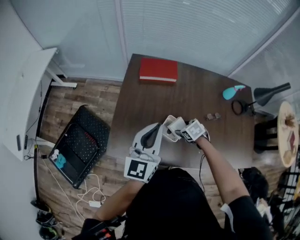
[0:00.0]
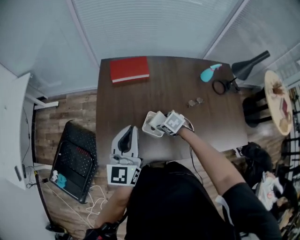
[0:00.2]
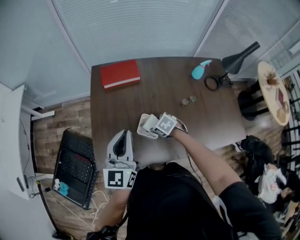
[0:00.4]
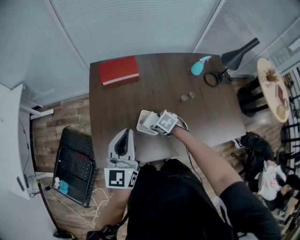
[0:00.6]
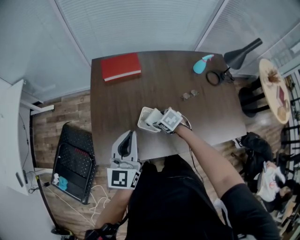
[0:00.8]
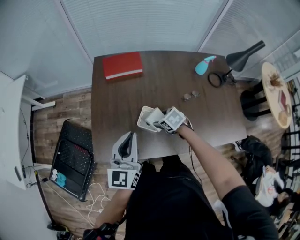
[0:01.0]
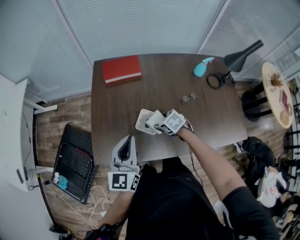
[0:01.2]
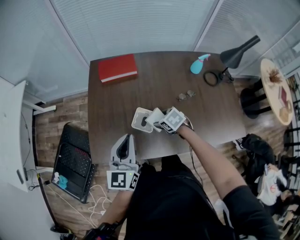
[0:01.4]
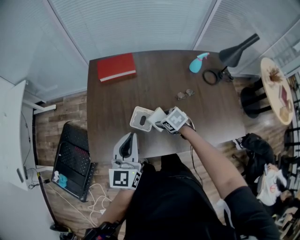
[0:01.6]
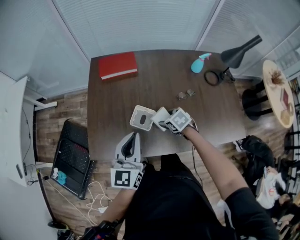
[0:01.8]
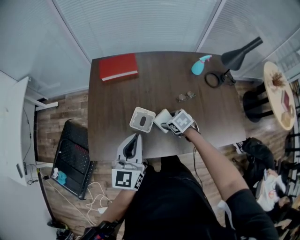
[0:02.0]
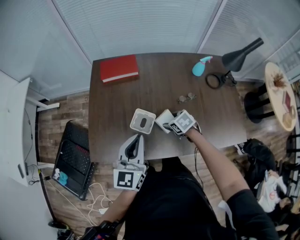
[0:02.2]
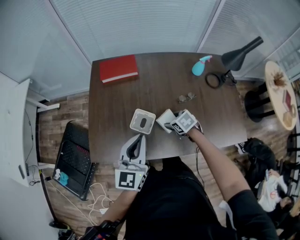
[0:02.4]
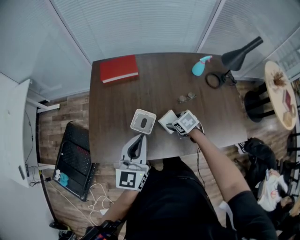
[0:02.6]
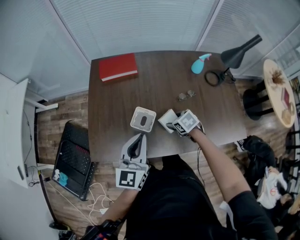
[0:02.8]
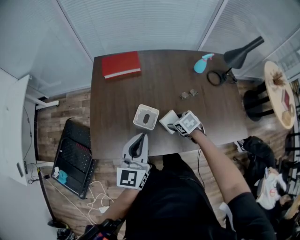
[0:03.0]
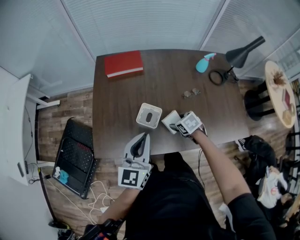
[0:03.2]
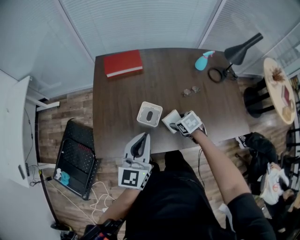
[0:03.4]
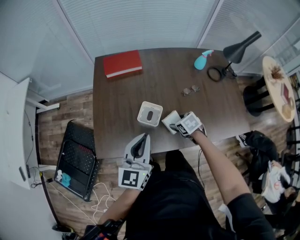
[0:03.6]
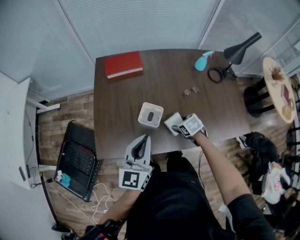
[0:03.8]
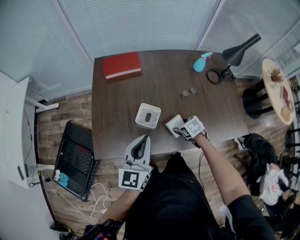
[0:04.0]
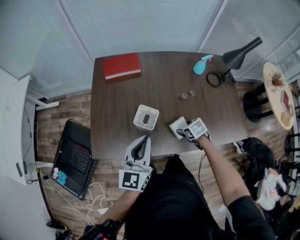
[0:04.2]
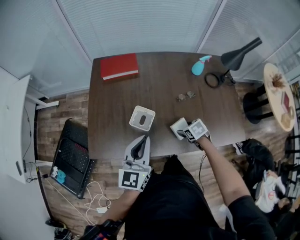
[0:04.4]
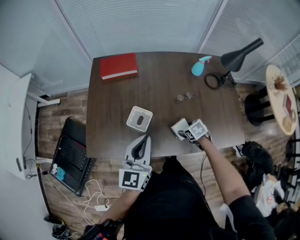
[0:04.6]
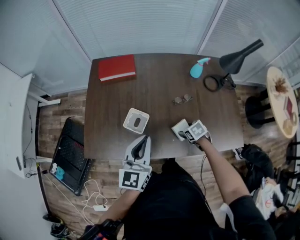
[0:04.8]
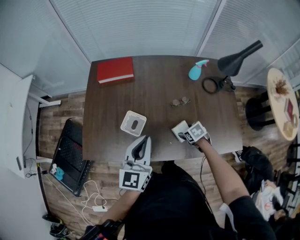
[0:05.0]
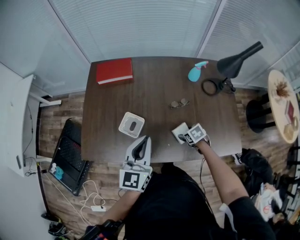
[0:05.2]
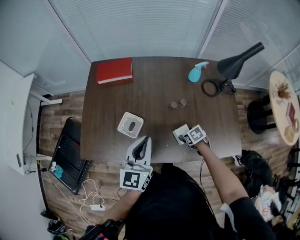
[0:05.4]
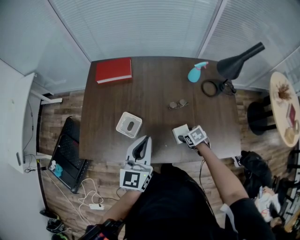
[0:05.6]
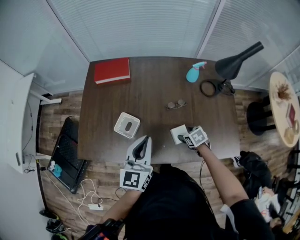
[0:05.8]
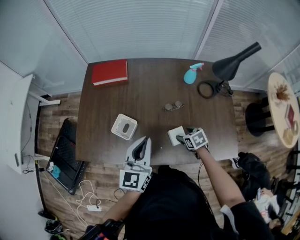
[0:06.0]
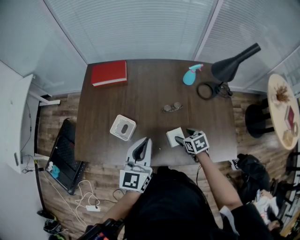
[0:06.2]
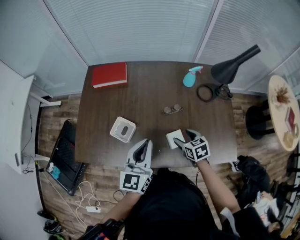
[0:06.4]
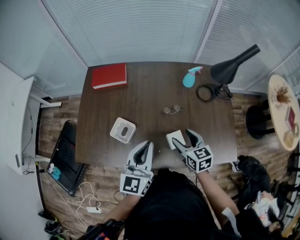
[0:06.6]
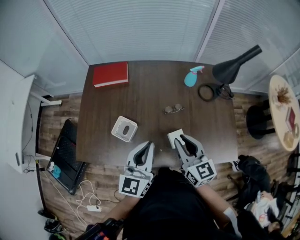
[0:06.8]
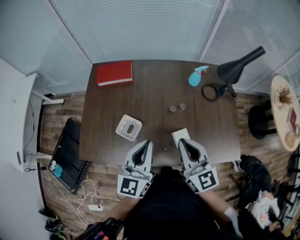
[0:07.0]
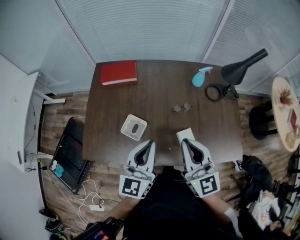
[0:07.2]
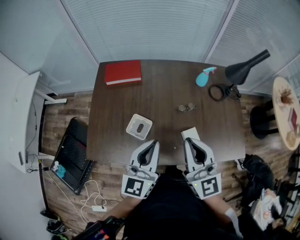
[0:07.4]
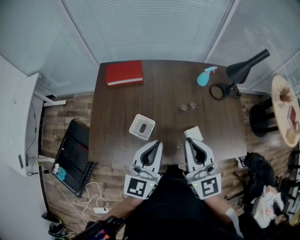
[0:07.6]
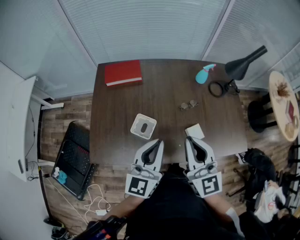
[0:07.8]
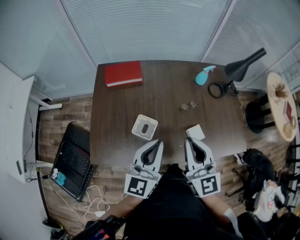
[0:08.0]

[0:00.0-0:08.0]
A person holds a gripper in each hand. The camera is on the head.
0:00.0 to 0:01.6: The right gripper shifts roughly 10 cm to the right and backward. The left gripper shifts roughly 10 cm backward and to the right.
0:01.6 to 0:03.2: The right gripper ends up roughly 5 cm from where it was.
0:03.2 to 0:04.8: The grippers both shift to the right by approximately 10 cm.
0:04.8 to 0:06.4: The right gripper is displaced upward by approximately 10 cm, and changes its angle by roughly 20 degrees; the left gripper is displaced to the right by some 10 cm.
0:06.4 to 0:08.0: The left gripper shifts about 10 cm to the left. Meanwhile the right gripper moves upward and to the left, roughly 30 cm, angles its fingers upward, by about 50 degrees, and closes.

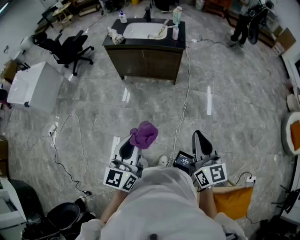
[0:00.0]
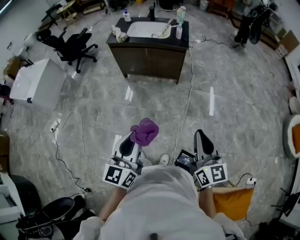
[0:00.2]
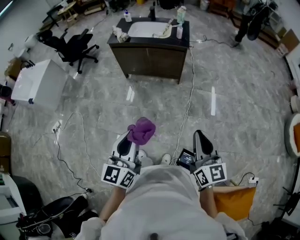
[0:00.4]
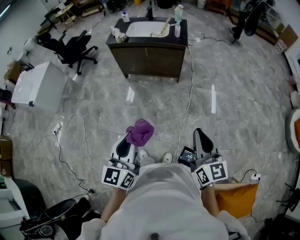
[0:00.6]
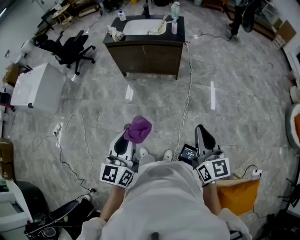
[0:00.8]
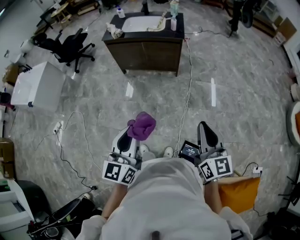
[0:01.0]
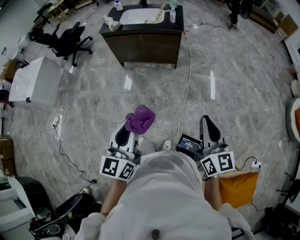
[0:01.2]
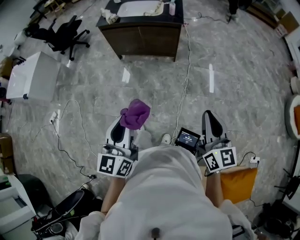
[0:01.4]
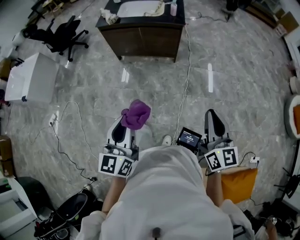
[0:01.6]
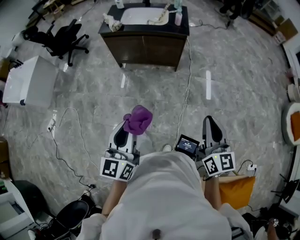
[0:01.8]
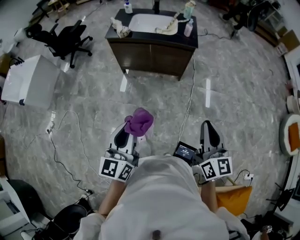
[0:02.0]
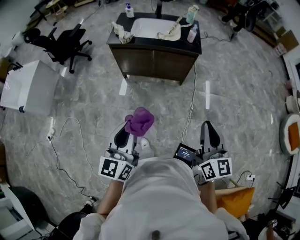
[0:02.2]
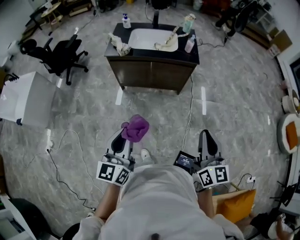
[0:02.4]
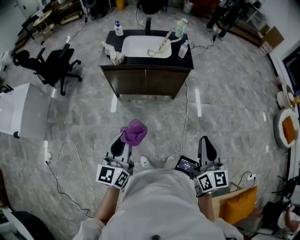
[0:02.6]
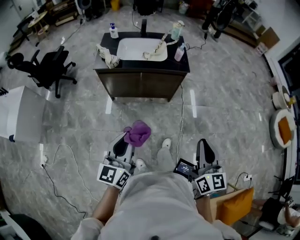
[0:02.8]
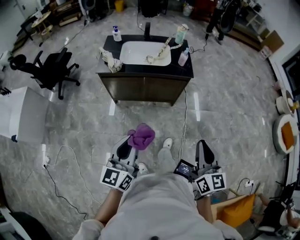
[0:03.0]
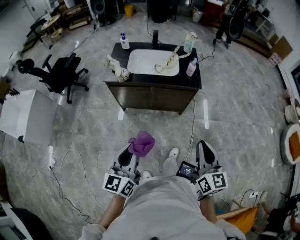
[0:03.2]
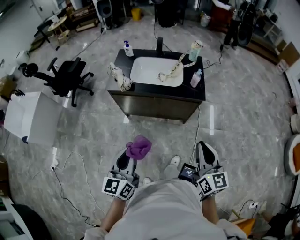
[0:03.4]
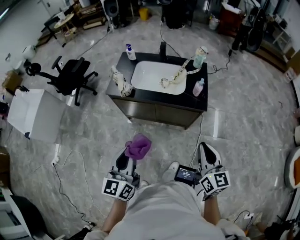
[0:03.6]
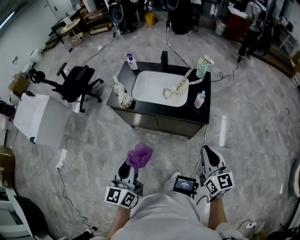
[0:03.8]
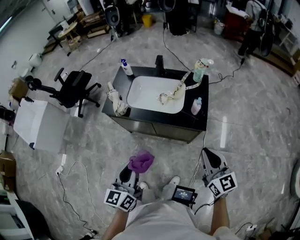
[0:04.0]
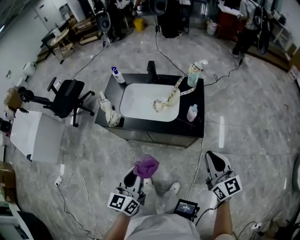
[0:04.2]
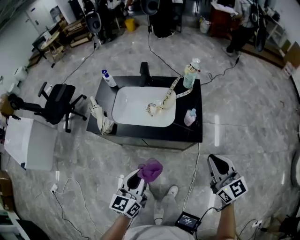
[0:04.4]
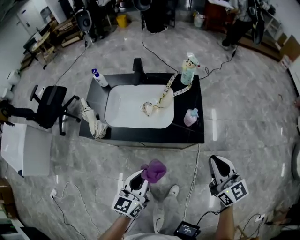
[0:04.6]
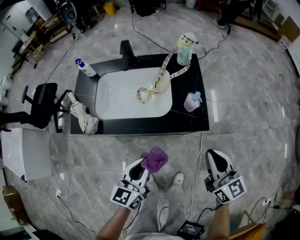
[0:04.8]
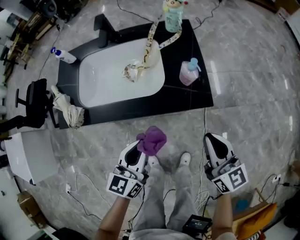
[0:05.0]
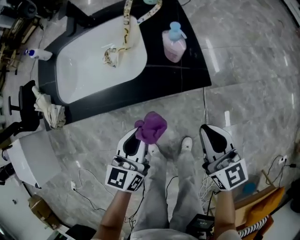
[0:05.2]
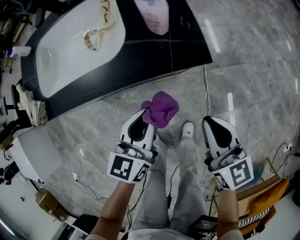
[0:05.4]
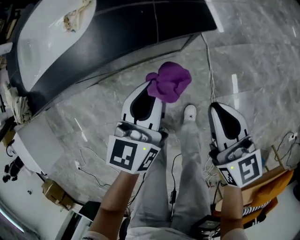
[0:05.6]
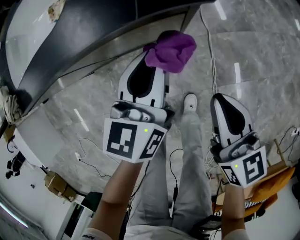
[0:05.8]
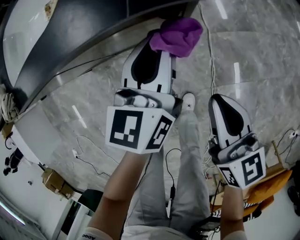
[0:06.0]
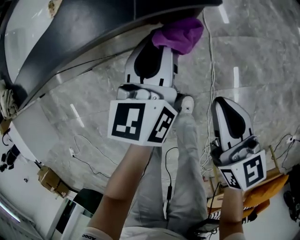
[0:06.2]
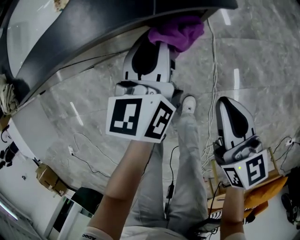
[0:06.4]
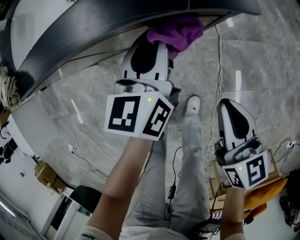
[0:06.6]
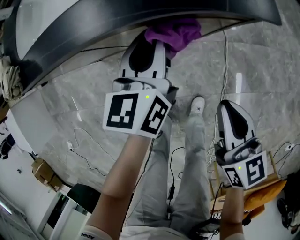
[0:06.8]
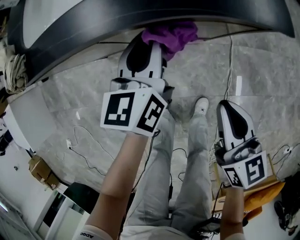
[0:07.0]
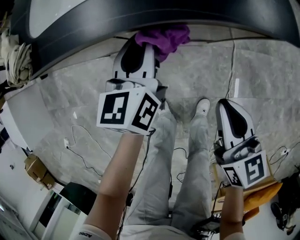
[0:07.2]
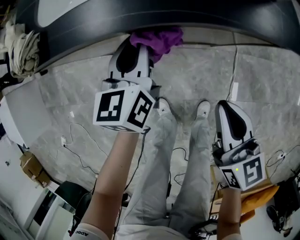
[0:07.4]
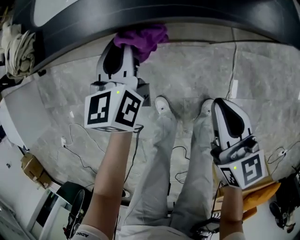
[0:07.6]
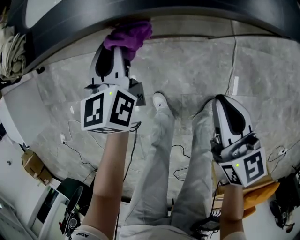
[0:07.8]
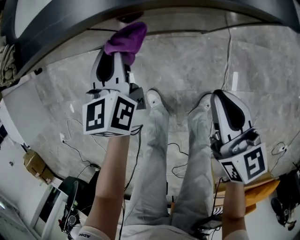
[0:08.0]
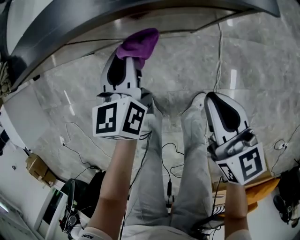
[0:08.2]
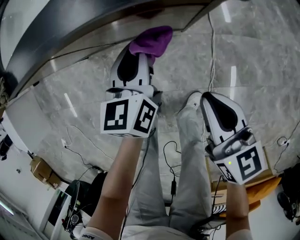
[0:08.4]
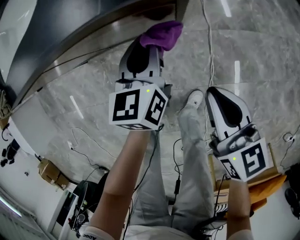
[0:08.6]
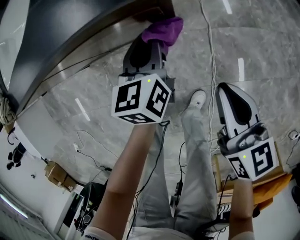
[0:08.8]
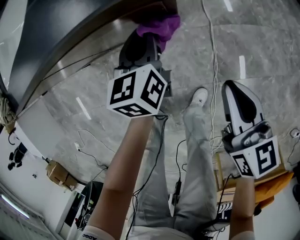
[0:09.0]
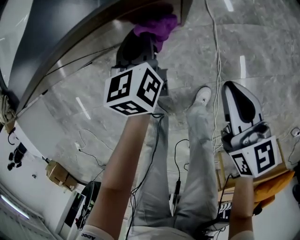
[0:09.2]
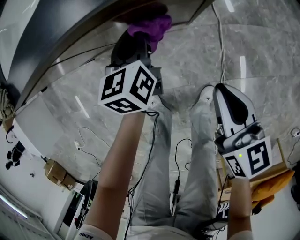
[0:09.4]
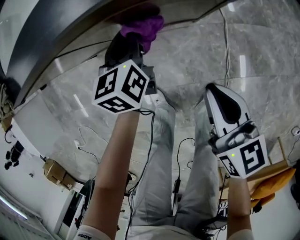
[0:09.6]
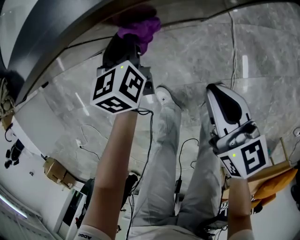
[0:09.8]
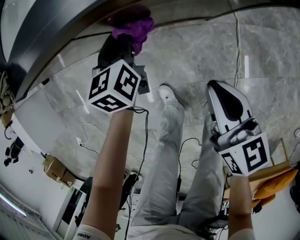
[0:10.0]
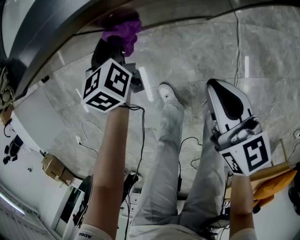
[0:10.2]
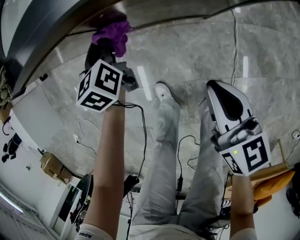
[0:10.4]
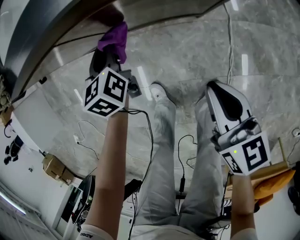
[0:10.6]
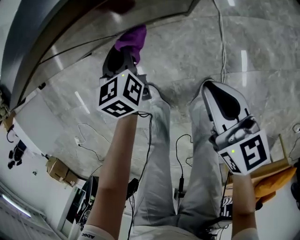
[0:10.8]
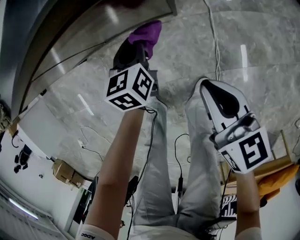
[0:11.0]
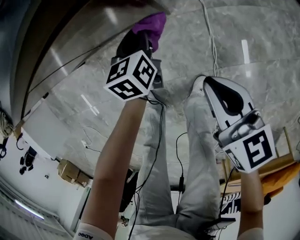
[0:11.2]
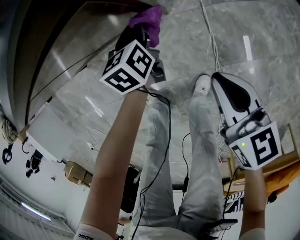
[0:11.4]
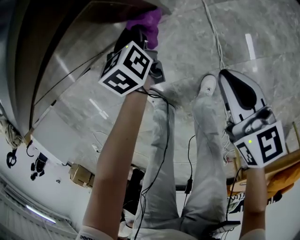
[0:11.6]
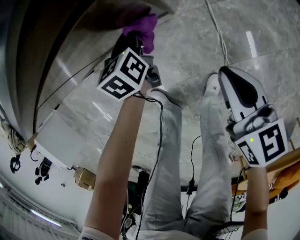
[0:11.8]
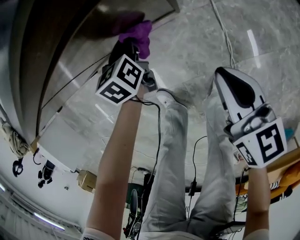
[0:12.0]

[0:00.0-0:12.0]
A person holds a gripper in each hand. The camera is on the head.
0:00.0 to 0:01.6: There are only small adjustments of the grippers.
0:01.6 to 0:03.0: The grippers both shift forward and to the left by approximately 30 cm.
0:03.0 to 0:04.4: Both grippers move forward and to the right, roughly 40 cm. The right gripper changes its angle by roughly 30 degrees.
0:04.4 to 0:06.0: The right gripper is displaced downward by roughly 40 cm, and turns by some 30 degrees; the left gripper heads downward, to the right and forward, covering approximately 40 cm.
0:06.0 to 0:07.6: The right gripper shifts about 20 cm to the left. The left gripper is displaced to the left by approximately 35 cm.
0:07.6 to 0:09.0: Both grippers travel together to the right, about 30 cm.
0:09.0 to 0:10.4: The two grippers go about 25 cm to the left.
0:10.4 to 0:12.0: The left gripper goes approximately 25 cm to the right and downward, and swivels some 20 degrees. Meanwhile the right gripper goes roughly 15 cm to the right and downward.

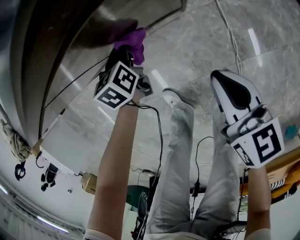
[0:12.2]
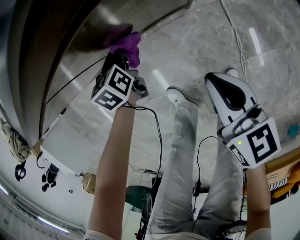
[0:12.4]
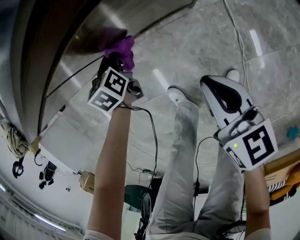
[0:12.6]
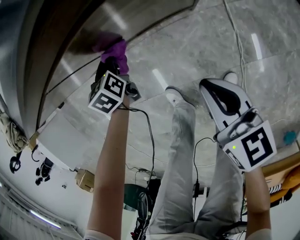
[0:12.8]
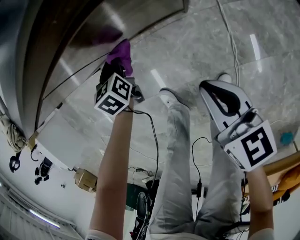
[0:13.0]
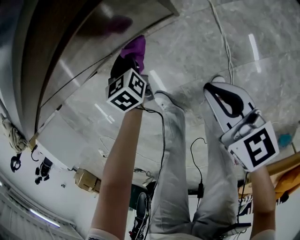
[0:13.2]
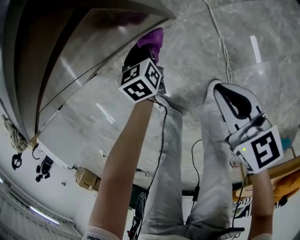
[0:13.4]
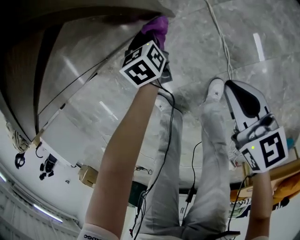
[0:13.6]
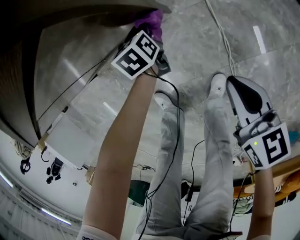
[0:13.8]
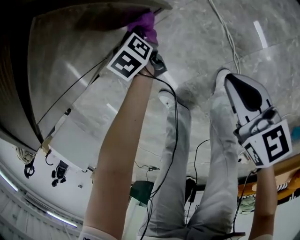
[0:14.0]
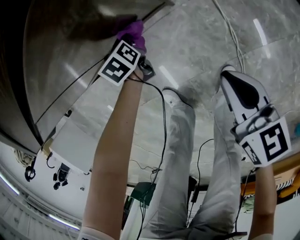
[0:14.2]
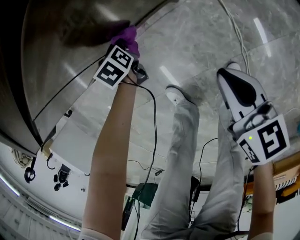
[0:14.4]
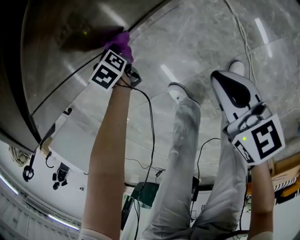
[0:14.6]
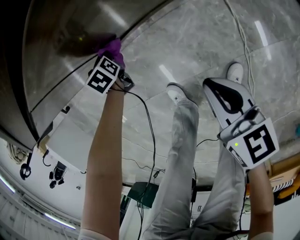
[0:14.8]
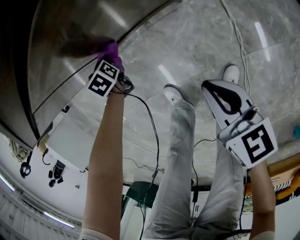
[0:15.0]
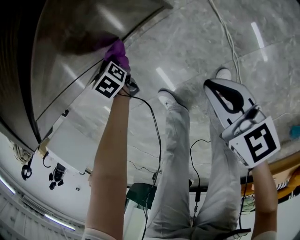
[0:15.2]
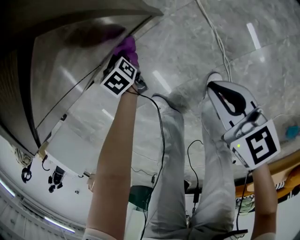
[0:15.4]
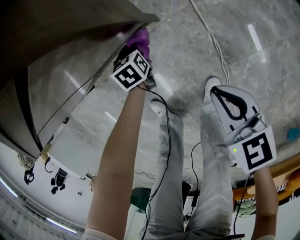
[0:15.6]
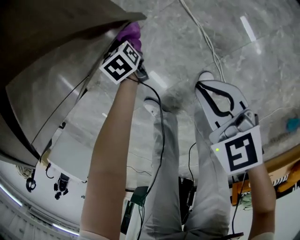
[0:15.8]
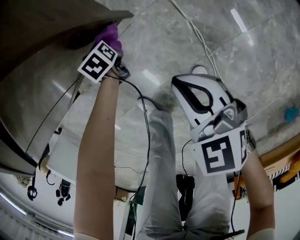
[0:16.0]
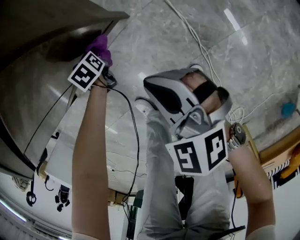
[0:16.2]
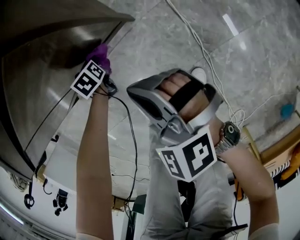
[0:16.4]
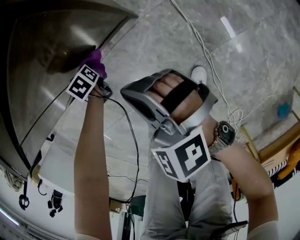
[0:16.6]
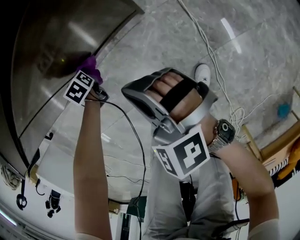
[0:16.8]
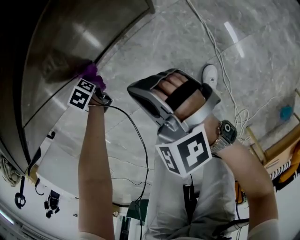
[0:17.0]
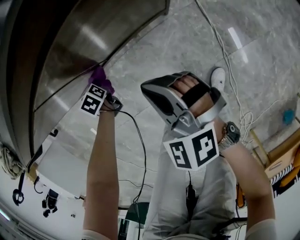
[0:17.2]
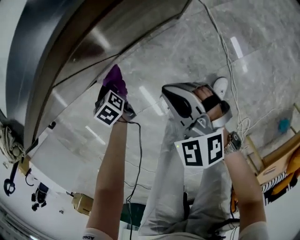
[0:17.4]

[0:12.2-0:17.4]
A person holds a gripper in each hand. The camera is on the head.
0:12.2 to 0:14.0: The right gripper travels to the right, backward and downward by approximately 15 cm, while the left gripper swings left and right, about 30 cm each way, with 2 reversals.
0:14.0 to 0:15.6: The left gripper goes to the left and returns, roughly 25 cm each way. The right gripper moves roughly 15 cm to the left and comes back.
0:15.6 to 0:17.4: The left gripper shifts roughly 35 cm to the left; the right gripper moves to the left and forward, about 30 cm, and twists roughly 40 degrees counterclockwise, seen from behind.
